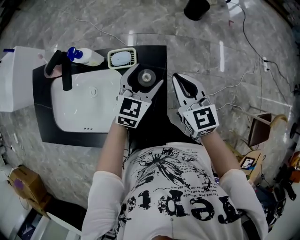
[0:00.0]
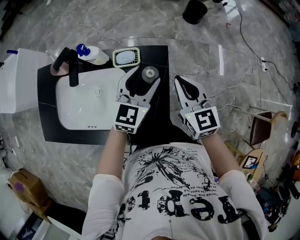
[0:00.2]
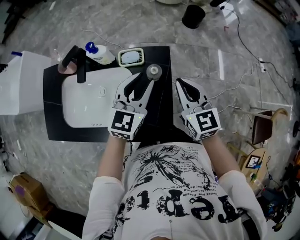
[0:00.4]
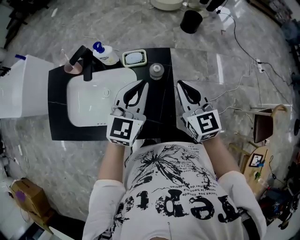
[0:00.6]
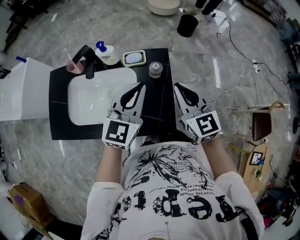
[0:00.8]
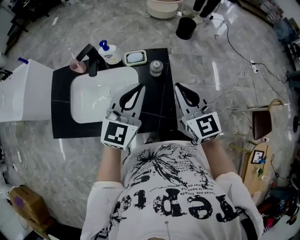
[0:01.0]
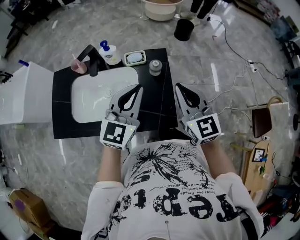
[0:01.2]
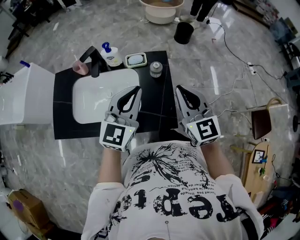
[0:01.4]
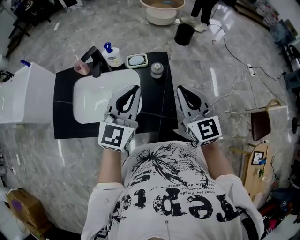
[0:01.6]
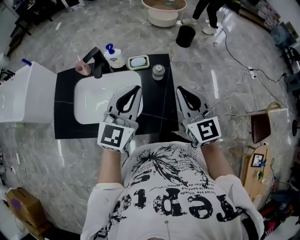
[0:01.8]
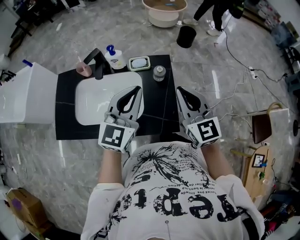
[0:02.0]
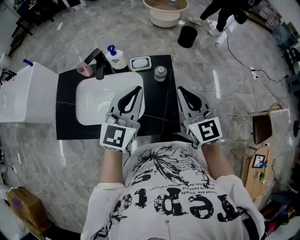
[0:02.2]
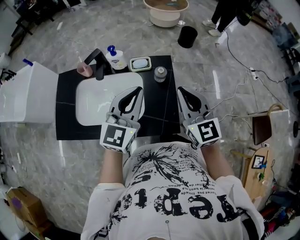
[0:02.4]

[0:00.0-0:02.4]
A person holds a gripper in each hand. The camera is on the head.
0:00.0 to 0:01.2: The right gripper travels backward and upward by about 30 cm; the left gripper goes approximately 35 cm backward, upward and to the left, and closes.
0:01.2 to 0:02.4: There are only small adjustments of the grippers.

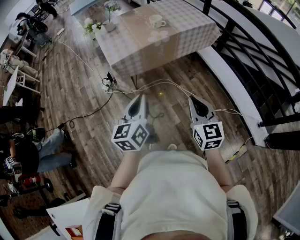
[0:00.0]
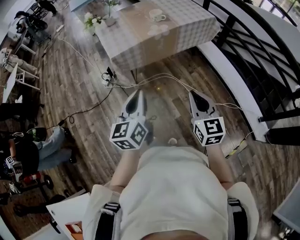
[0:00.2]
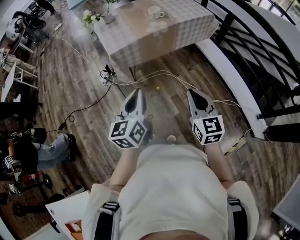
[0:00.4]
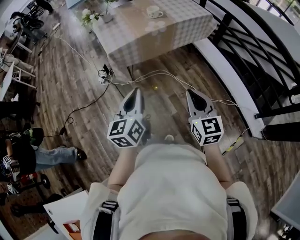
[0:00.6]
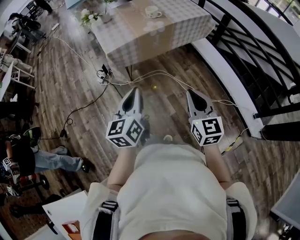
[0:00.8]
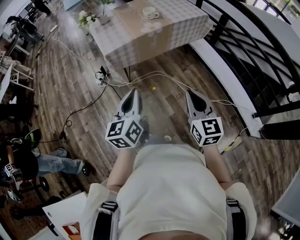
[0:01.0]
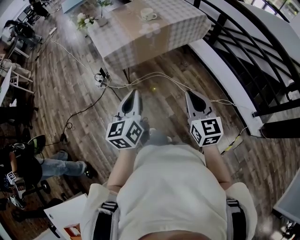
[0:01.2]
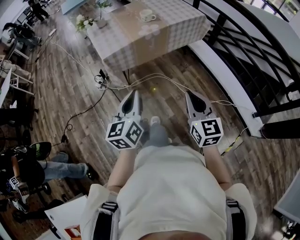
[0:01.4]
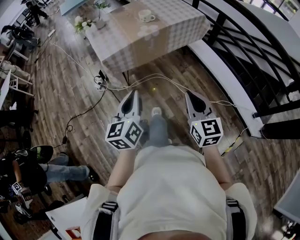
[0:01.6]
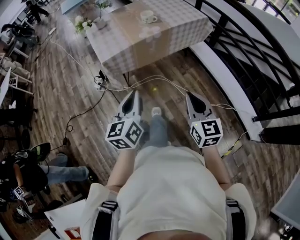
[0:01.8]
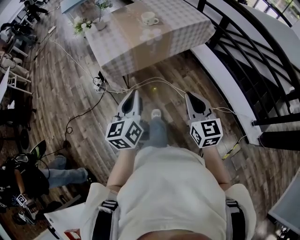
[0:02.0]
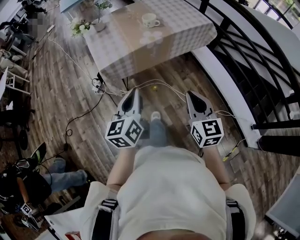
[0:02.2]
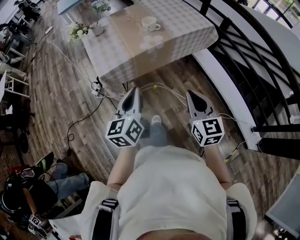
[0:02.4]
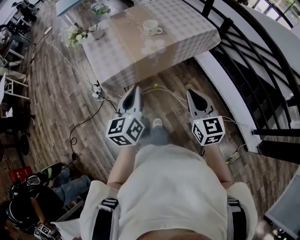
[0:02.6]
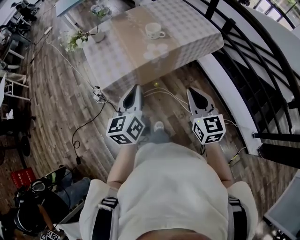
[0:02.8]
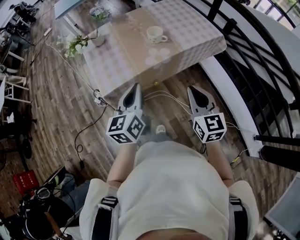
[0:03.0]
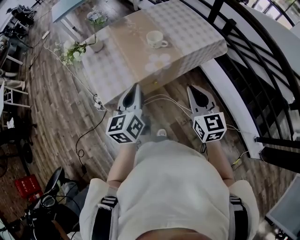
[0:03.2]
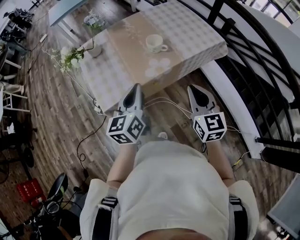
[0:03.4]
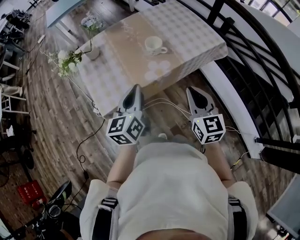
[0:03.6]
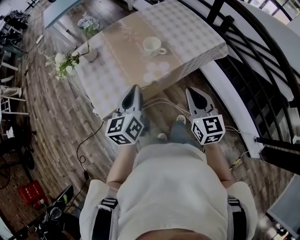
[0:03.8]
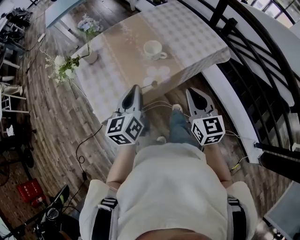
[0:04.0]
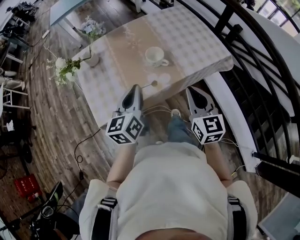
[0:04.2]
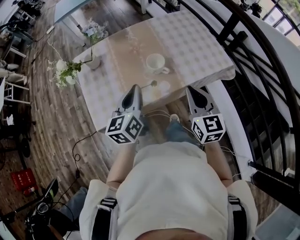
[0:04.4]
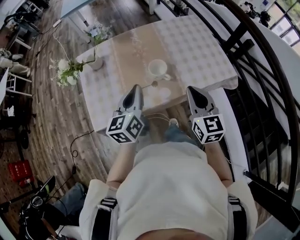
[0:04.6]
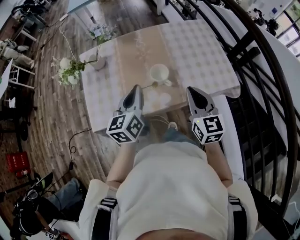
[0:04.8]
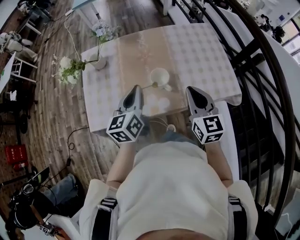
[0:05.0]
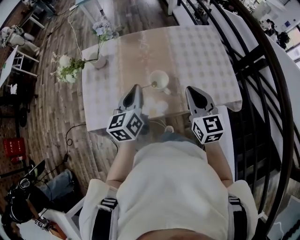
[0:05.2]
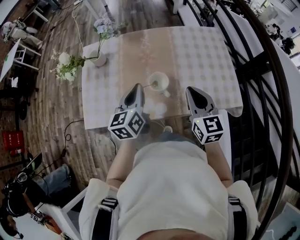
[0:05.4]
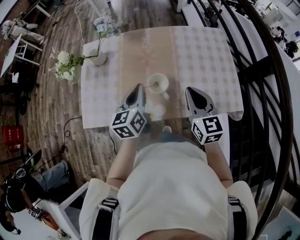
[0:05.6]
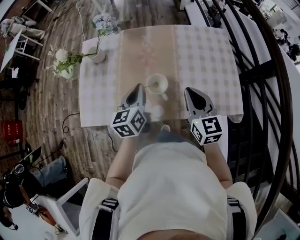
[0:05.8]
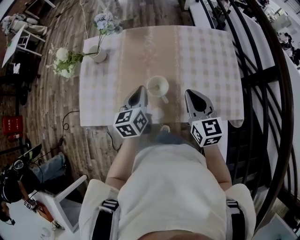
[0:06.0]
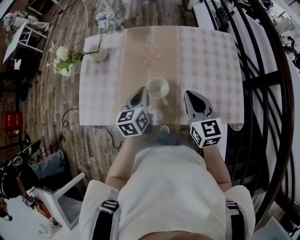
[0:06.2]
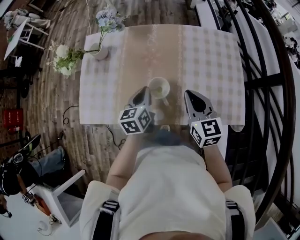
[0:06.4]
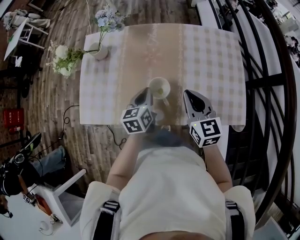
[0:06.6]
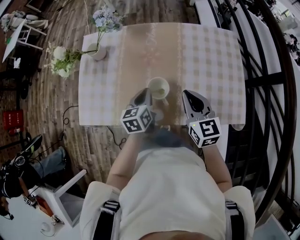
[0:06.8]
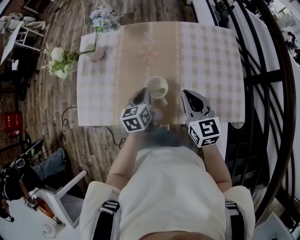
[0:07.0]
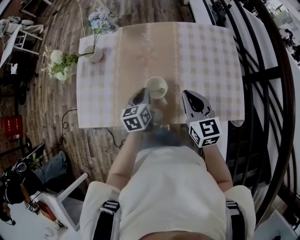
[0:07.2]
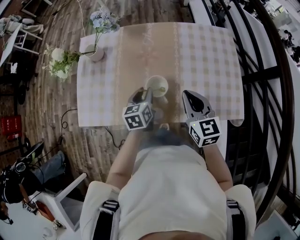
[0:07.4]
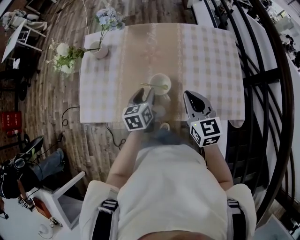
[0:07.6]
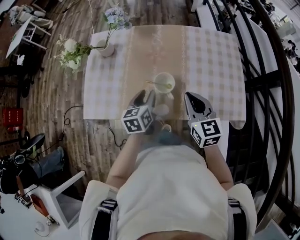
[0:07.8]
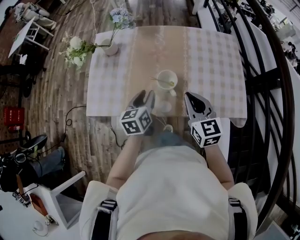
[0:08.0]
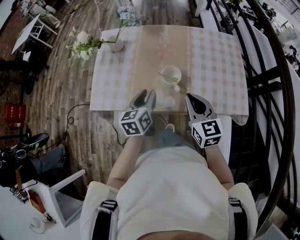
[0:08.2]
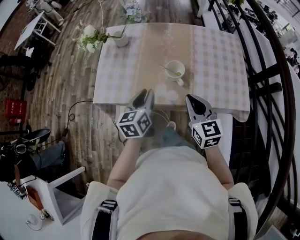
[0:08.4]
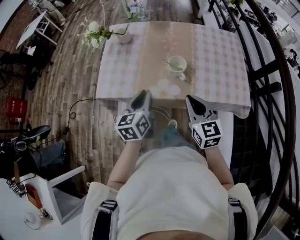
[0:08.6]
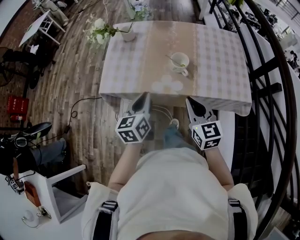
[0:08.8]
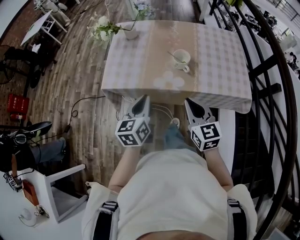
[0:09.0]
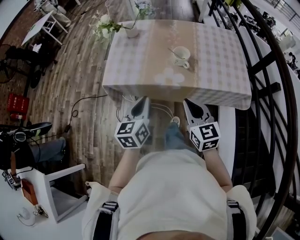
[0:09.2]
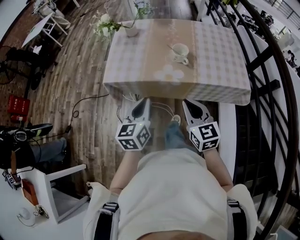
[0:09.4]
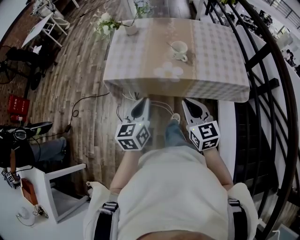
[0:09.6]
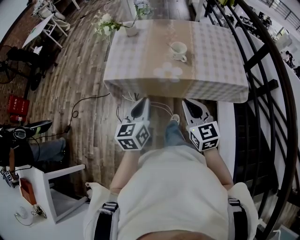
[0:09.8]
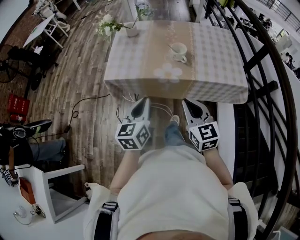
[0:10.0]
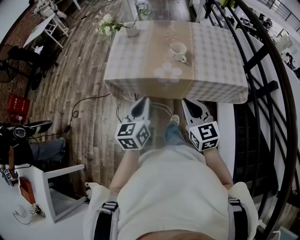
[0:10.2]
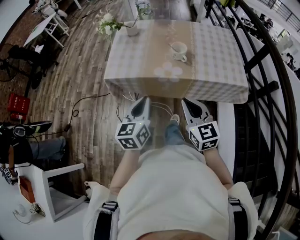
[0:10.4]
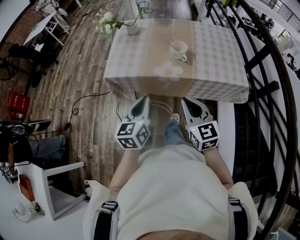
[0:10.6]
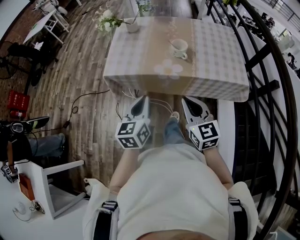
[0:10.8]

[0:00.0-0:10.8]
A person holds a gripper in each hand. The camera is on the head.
0:00.0 to 0:01.6: There are only small adjustments of the grippers.
0:01.6 to 0:03.0: Both grippers travel together forward, roughly 25 cm.
0:03.0 to 0:04.6: The grippers both shift forward by roughly 20 cm.
0:04.6 to 0:06.2: The right gripper goes roughly 15 cm forward and downward, and swivels approximately 20 degrees; the left gripper travels downward and forward by about 15 cm, and changes its angle by approximately 20 degrees.
0:06.2 to 0:07.8: The left gripper opens.
0:07.8 to 0:09.2: The left gripper moves backward, upward and to the left, some 15 cm, and closes its fingers, while the right gripper goes approximately 10 cm backward and to the left.
0:09.2 to 0:10.8: The grippers stay close to where they were, moving slightly.

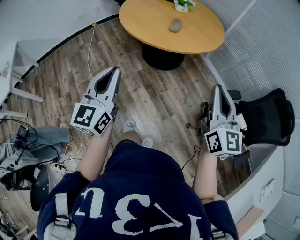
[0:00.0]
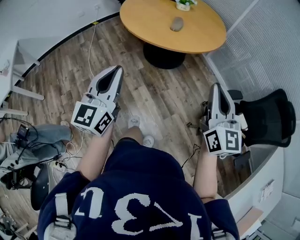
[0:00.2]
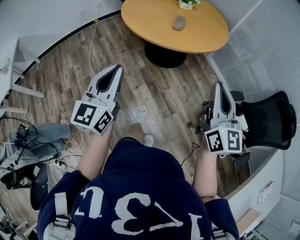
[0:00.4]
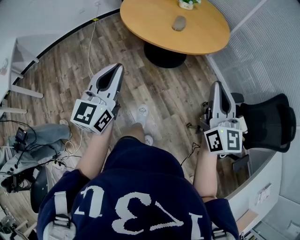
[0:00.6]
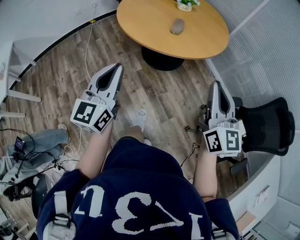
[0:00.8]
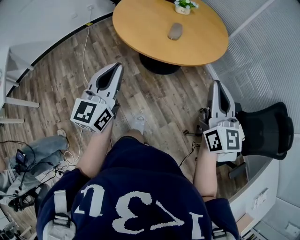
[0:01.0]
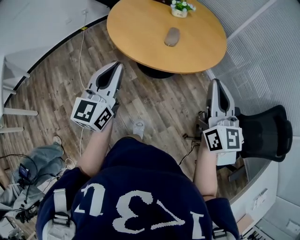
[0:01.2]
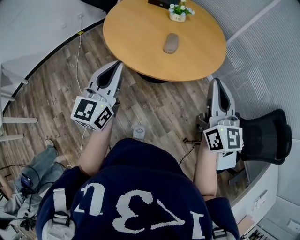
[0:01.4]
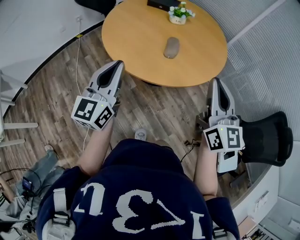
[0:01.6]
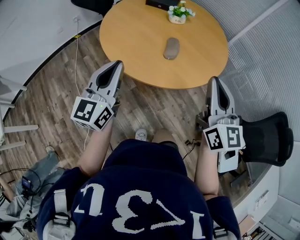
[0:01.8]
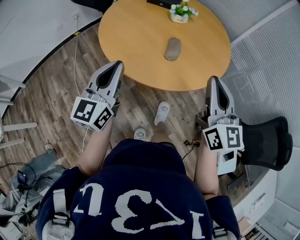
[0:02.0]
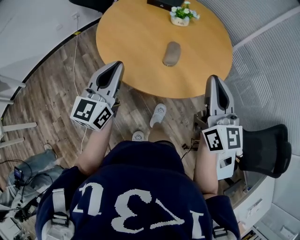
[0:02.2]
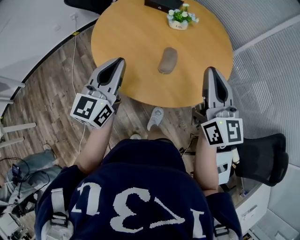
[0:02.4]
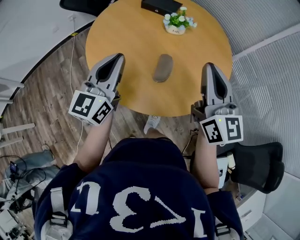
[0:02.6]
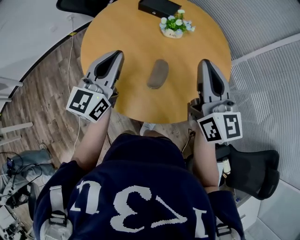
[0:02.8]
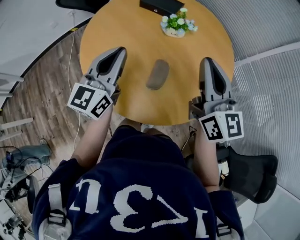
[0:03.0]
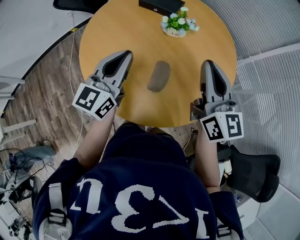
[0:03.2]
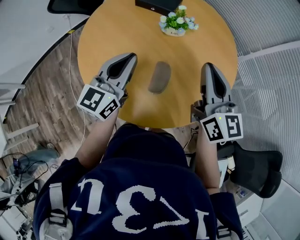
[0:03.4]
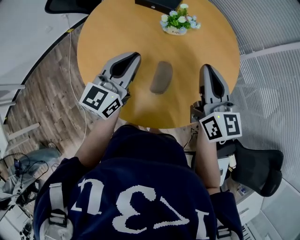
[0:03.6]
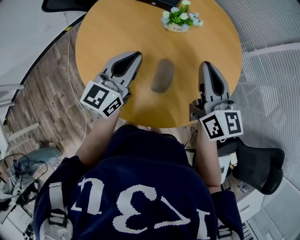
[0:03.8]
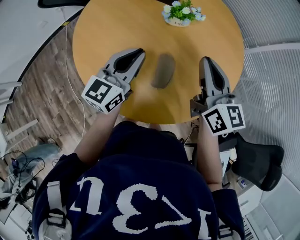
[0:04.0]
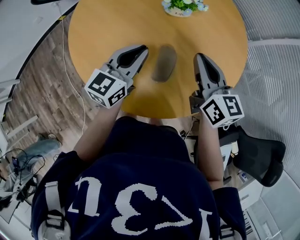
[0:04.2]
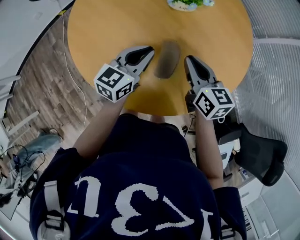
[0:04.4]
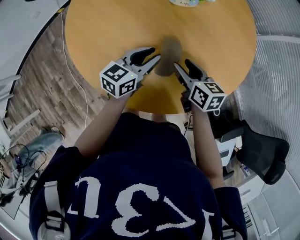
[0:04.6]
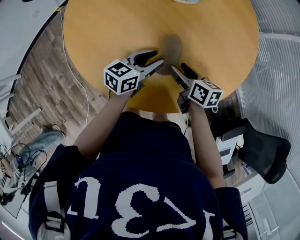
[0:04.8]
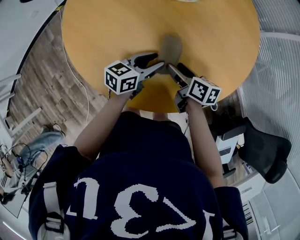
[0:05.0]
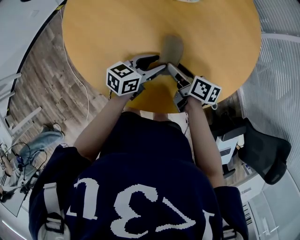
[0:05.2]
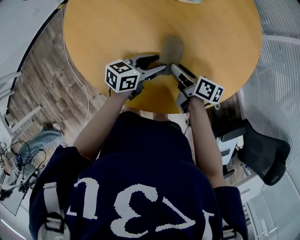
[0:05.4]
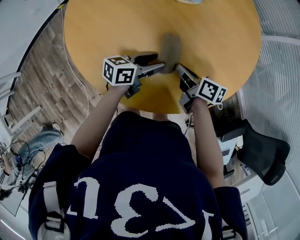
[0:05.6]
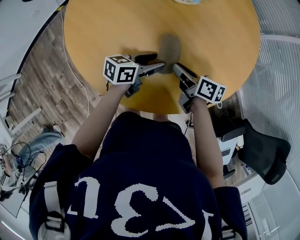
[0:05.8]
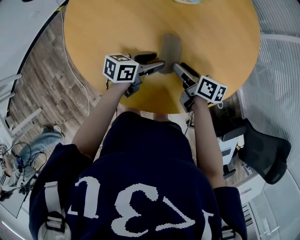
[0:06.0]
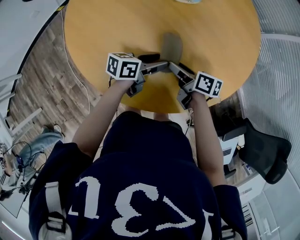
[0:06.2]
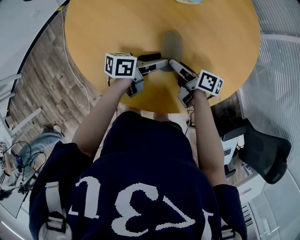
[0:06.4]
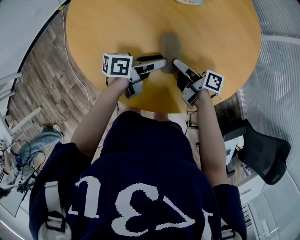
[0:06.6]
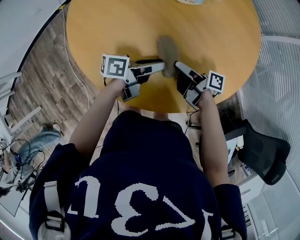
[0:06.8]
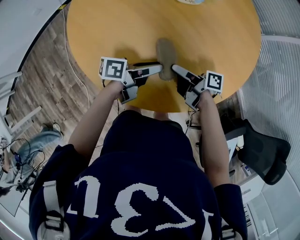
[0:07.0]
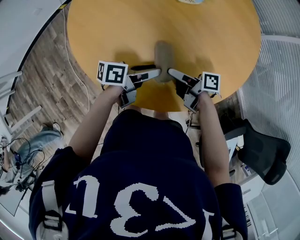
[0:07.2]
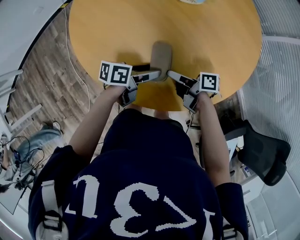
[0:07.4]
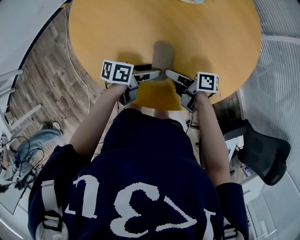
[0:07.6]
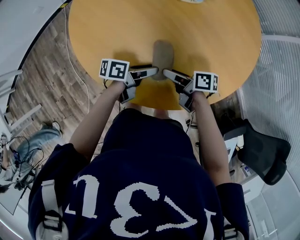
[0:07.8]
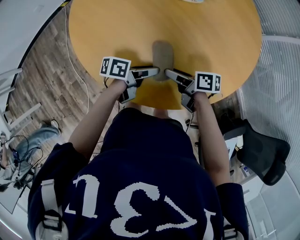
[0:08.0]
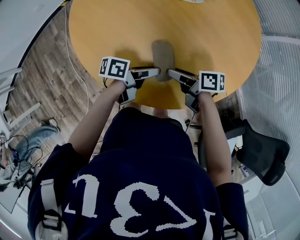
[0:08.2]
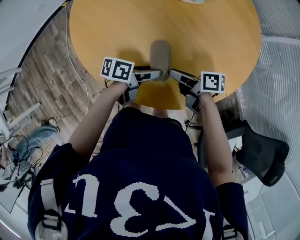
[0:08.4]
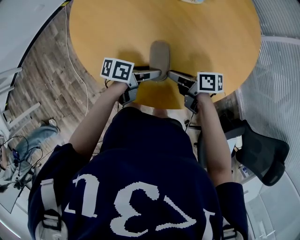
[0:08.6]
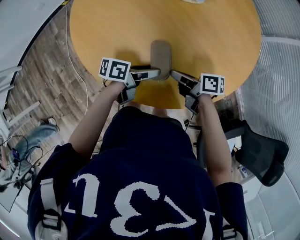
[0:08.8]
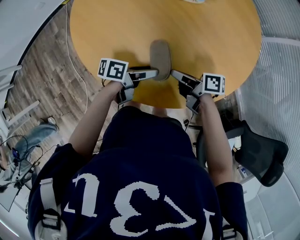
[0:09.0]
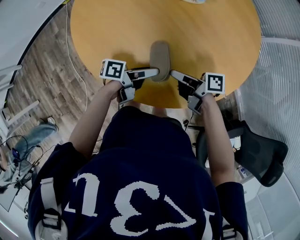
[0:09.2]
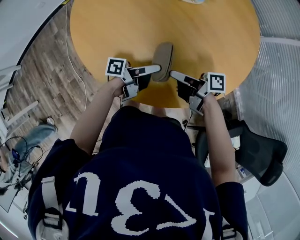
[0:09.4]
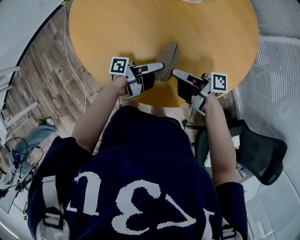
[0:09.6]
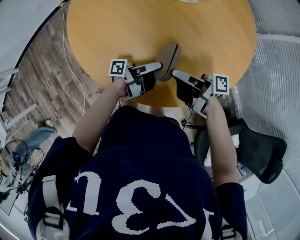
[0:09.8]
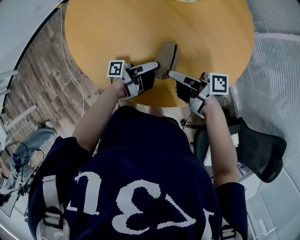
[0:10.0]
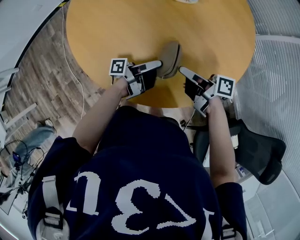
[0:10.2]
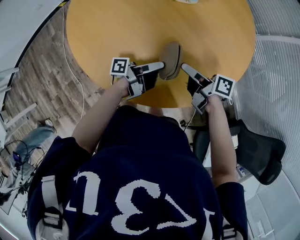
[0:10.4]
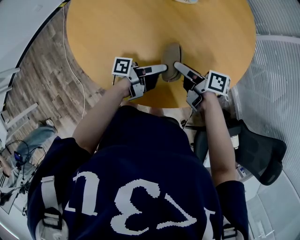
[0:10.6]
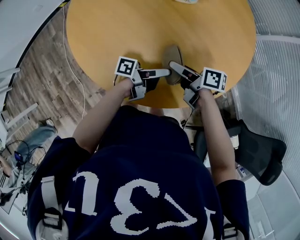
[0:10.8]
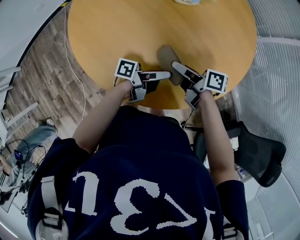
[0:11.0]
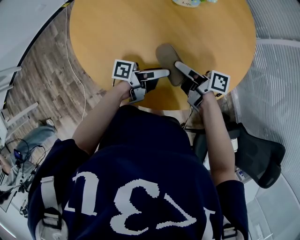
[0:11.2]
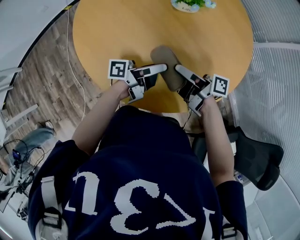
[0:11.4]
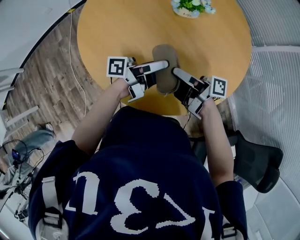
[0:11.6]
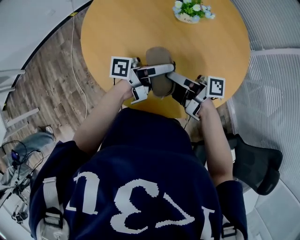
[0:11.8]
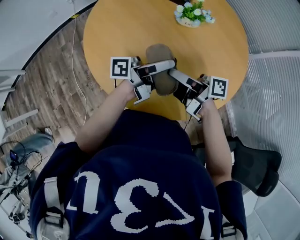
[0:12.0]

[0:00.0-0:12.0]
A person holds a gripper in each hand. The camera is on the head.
0:00.0 to 0:01.6: Both grippers move forward, about 30 cm.
0:01.6 to 0:03.0: The grippers both shift forward by roughly 35 cm.
0:03.0 to 0:04.4: The right gripper moves downward, some 25 cm, and changes its angle by approximately 30 degrees, while the left gripper travels downward and to the right by some 20 cm, and turns by roughly 30 degrees.
0:04.4 to 0:06.0: The grippers both shift downward by roughly 10 cm. The right gripper changes its angle by some 40 degrees, and opens up, while the left gripper swivels about 40 degrees, and opens.
0:06.0 to 0:07.6: The right gripper ends up about 5 cm from where it was, and changes its angle by roughly 30 degrees, while the left gripper ends up roughly 5 cm from where it was.
0:07.6 to 0:09.0: The right gripper closes its fingers.
0:09.0 to 0:10.4: The right gripper shifts by roughly 10 cm, and opens up, while the left gripper ends up approximately 5 cm from where it was, and angles its fingers upward, by about 30 degrees.
0:10.4 to 0:12.0: Both grippers travel together upward, approximately 15 cm. The right gripper rotates approximately 30 degrees, while the left gripper changes its angle by roughly 30 degrees.
